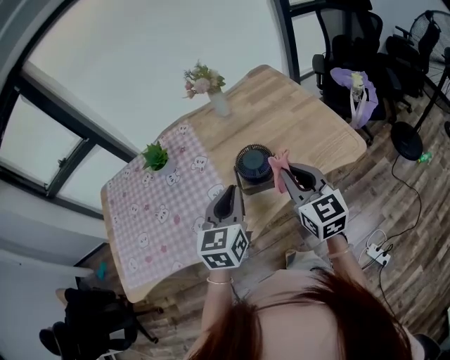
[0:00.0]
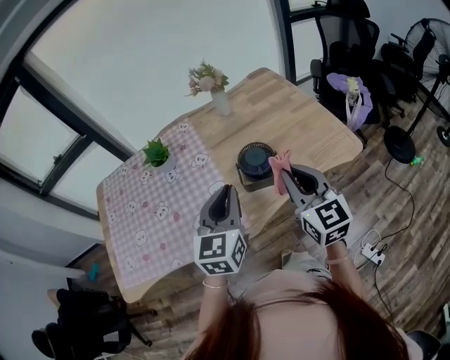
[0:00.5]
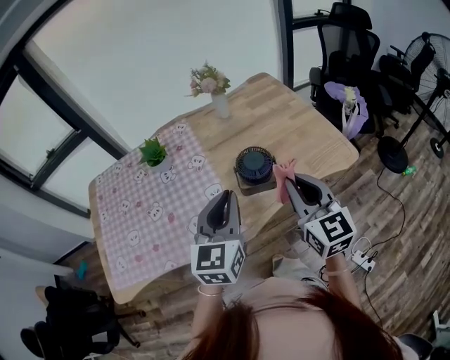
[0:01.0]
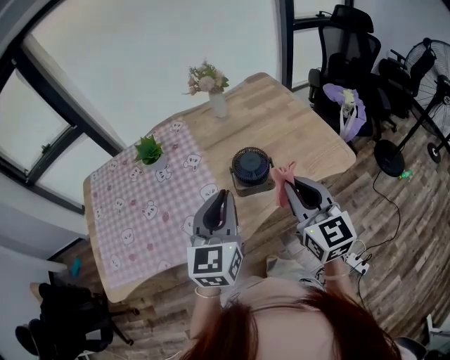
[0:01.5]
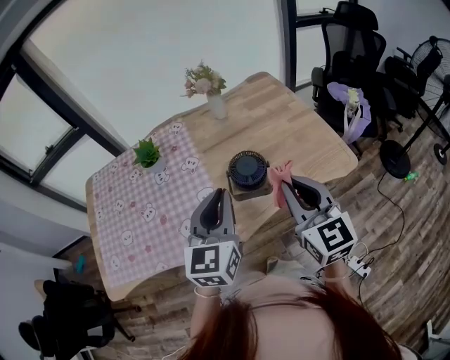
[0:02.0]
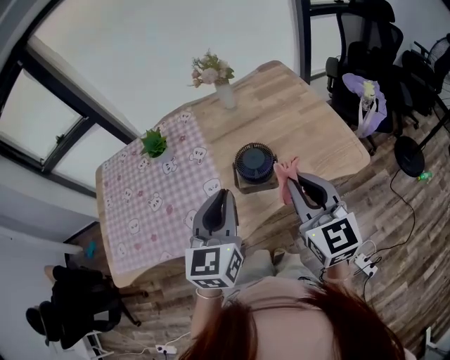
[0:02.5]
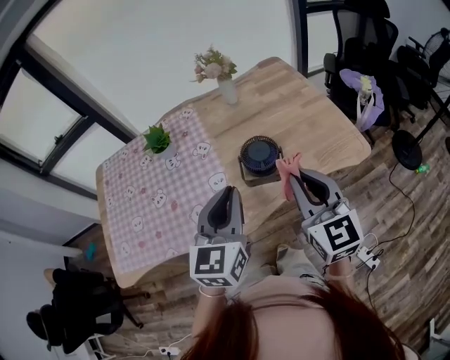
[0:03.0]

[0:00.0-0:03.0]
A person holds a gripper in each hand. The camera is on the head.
0:00.0 to 0:01.5: The right gripper changes place by roughly 5 cm. Meanwhile the left gripper is displaced upward by some 5 cm.
0:01.5 to 0:03.0: The grippers stay close to where they were, moving slightly.

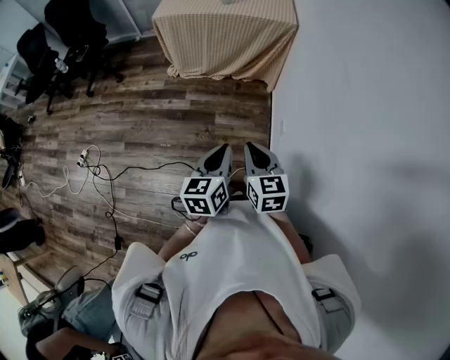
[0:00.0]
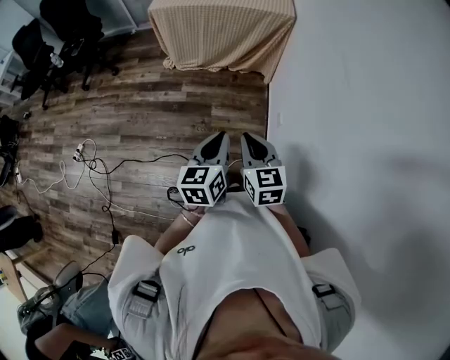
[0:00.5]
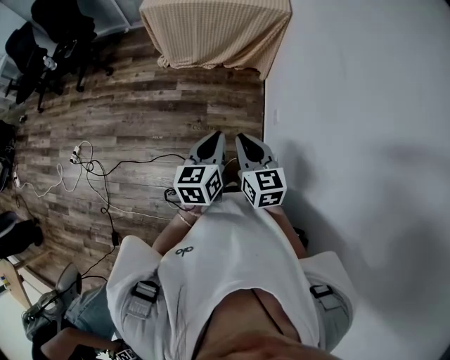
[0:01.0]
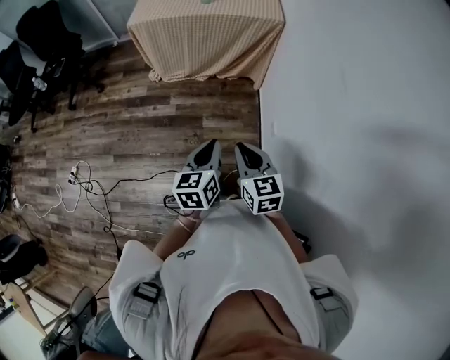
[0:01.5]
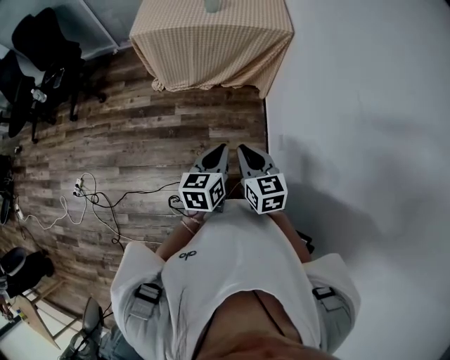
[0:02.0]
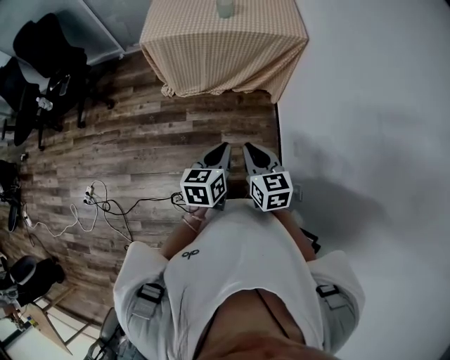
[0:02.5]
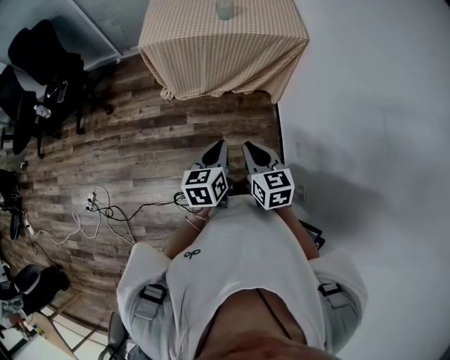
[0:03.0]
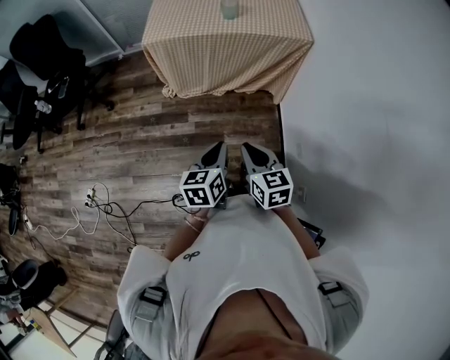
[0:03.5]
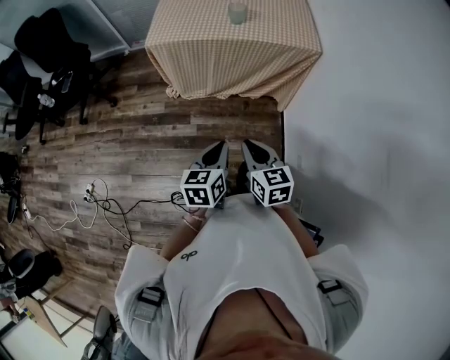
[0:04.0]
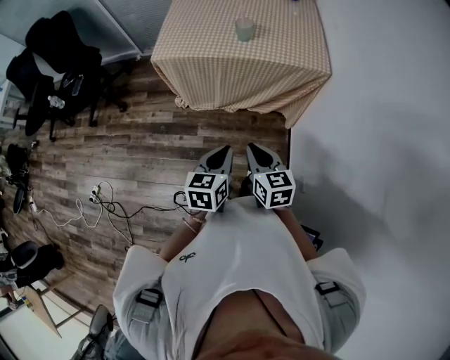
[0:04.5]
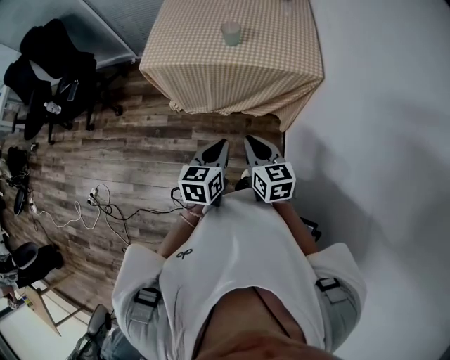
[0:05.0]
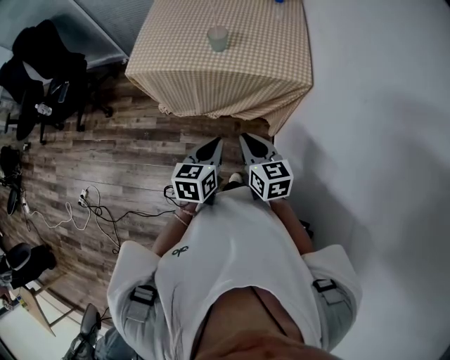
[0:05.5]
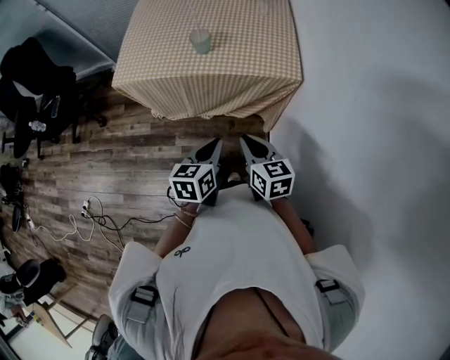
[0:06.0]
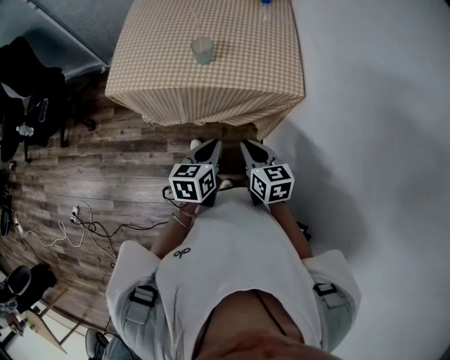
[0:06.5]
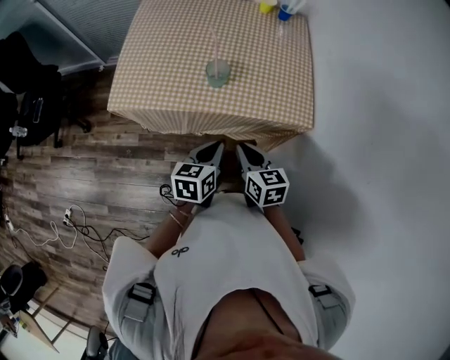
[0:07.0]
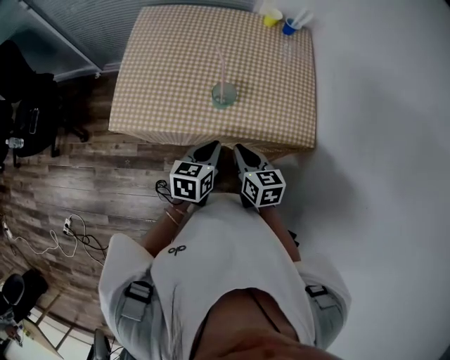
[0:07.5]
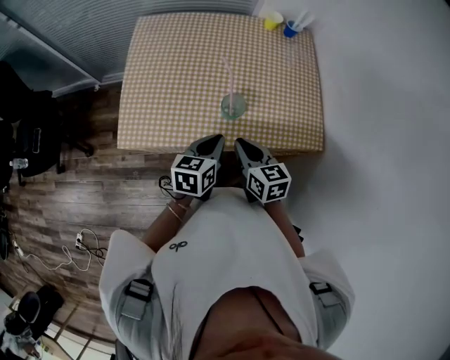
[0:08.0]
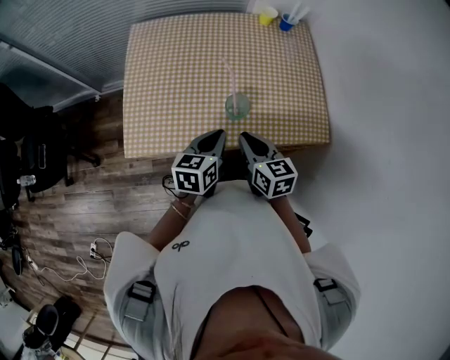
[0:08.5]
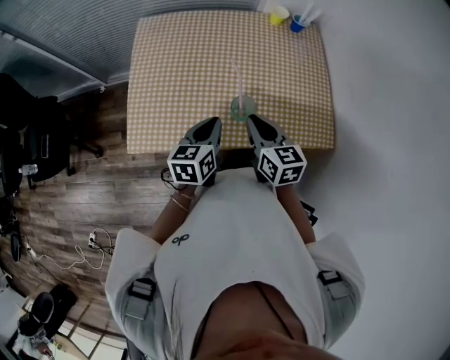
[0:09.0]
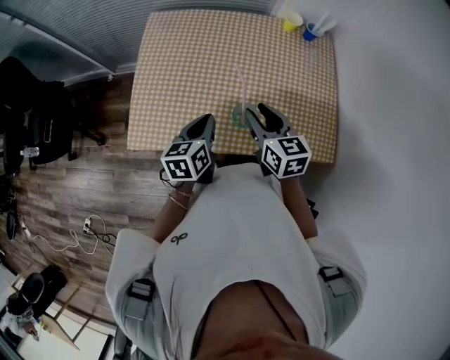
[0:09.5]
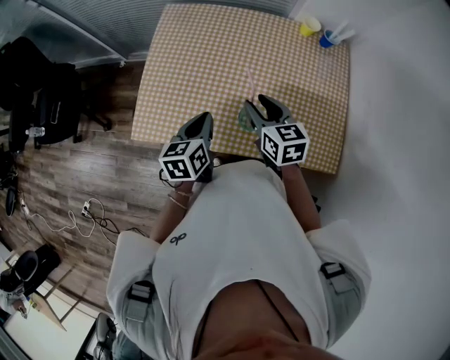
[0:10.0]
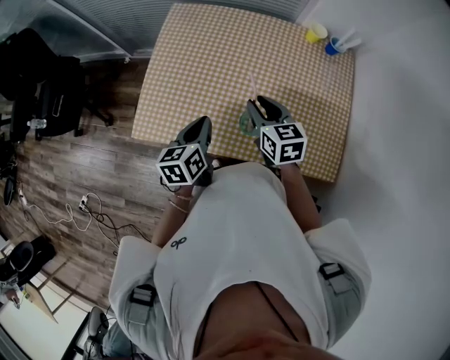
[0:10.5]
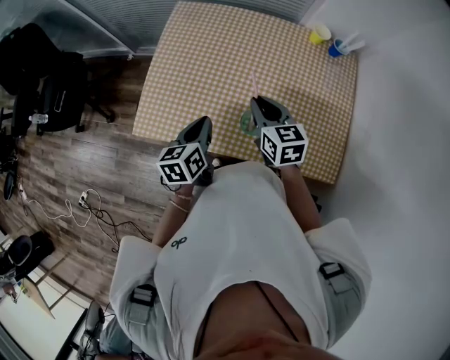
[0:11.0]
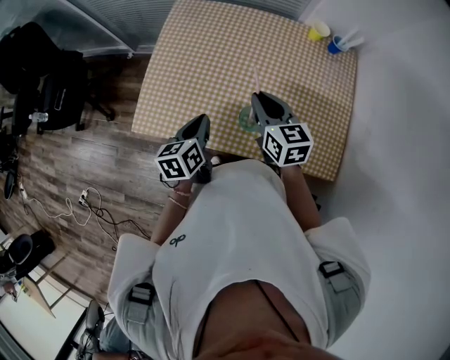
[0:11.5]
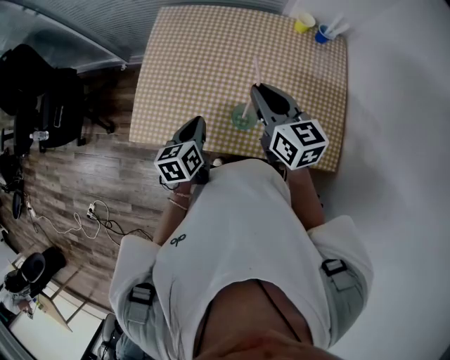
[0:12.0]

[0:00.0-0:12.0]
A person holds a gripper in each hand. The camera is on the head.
0:00.0 to 0:02.0: The grippers both shift forward by roughly 15 cm.
0:02.0 to 0:04.0: The grippers both shift forward and to the left by some 15 cm.
0:04.0 to 0:06.0: Both grippers move forward and to the right, roughly 25 cm.
0:06.0 to 0:08.0: The left gripper is displaced forward by some 30 cm, while the right gripper shifts roughly 30 cm forward and to the left.
0:08.0 to 0:10.0: The left gripper moves forward and to the left, approximately 10 cm, and changes its angle by about 20 degrees; the right gripper shifts roughly 15 cm forward, and opens up.
0:10.0 to 0:12.0: The right gripper heads upward, covering about 10 cm, and closes its fingers.

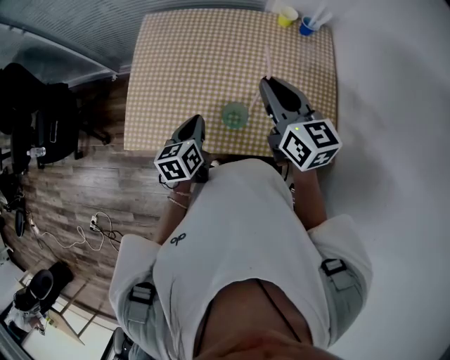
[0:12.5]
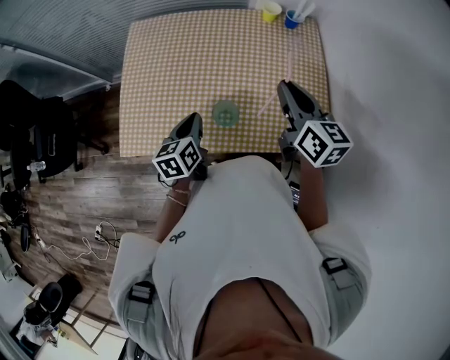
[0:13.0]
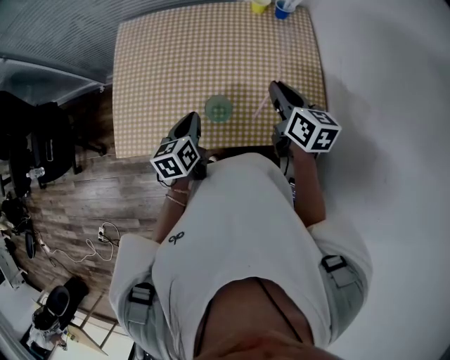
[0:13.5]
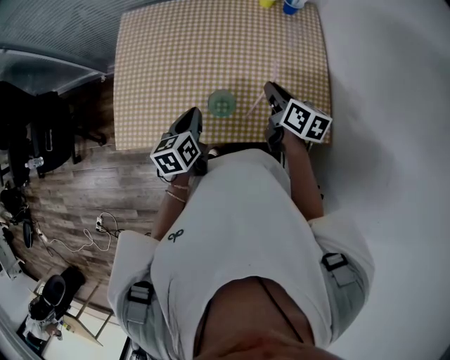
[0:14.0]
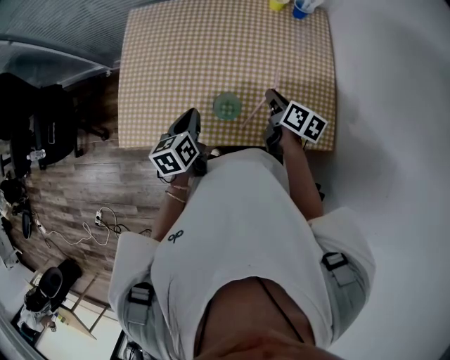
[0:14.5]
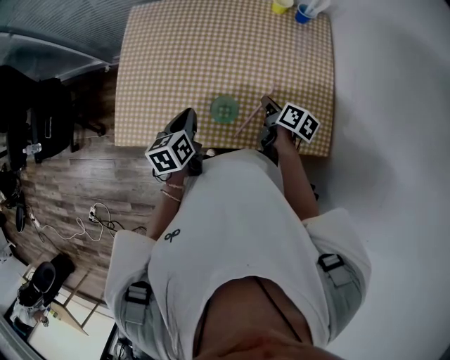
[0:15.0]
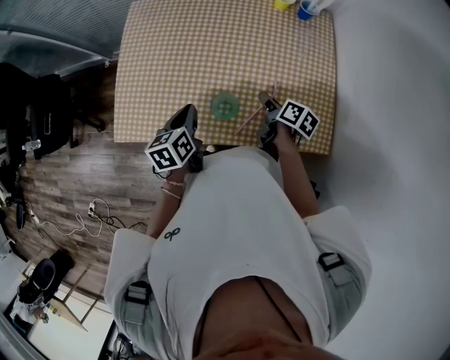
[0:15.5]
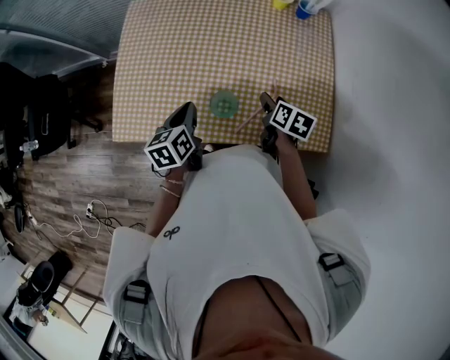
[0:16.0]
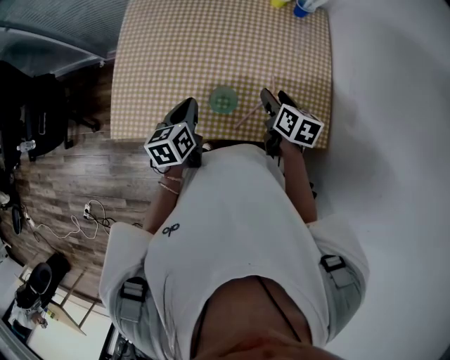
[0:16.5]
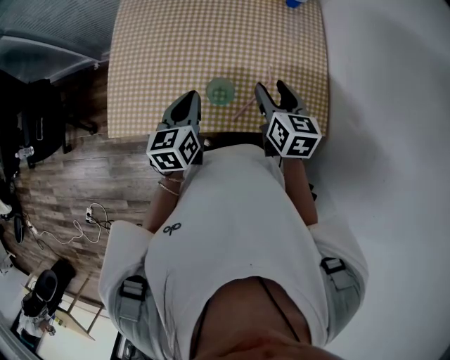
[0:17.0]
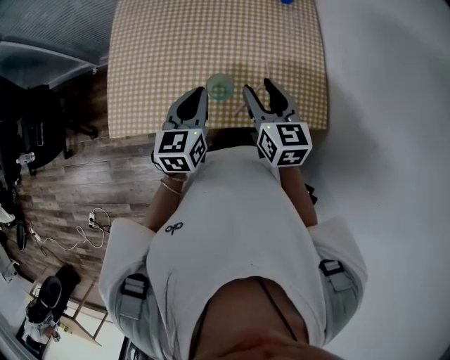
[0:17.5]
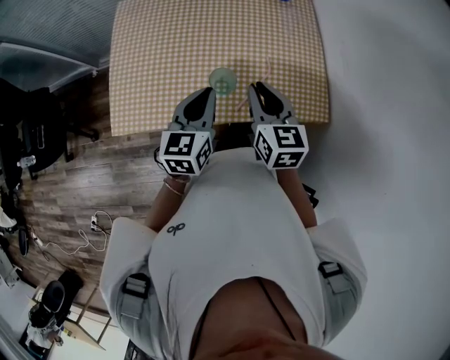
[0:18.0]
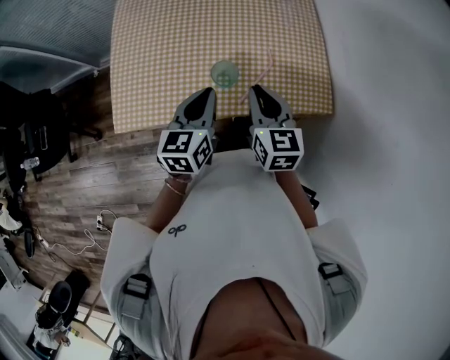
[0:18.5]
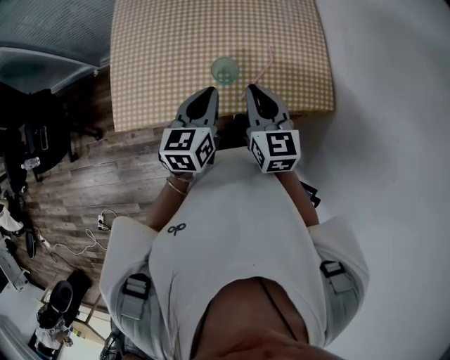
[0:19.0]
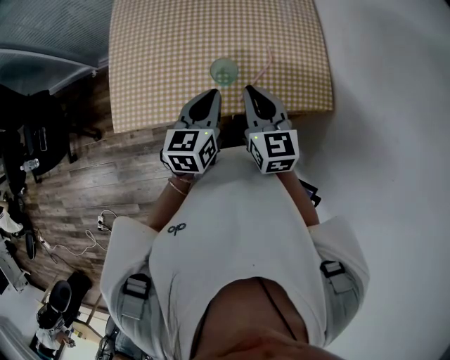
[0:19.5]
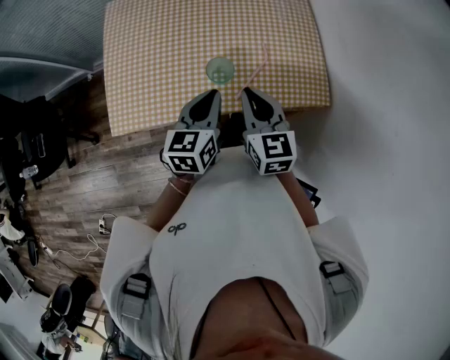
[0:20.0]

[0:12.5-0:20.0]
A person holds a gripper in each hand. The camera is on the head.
0:12.5 to 0:14.5: The right gripper heads downward and to the right, covering about 20 cm, and swivels roughly 40 degrees.
0:14.5 to 0:16.5: The right gripper opens up.
0:16.5 to 0:18.0: The left gripper shifts roughly 10 cm upward and to the right, and turns by about 30 degrees. Meanwhile the right gripper shifts about 15 cm upward, backward and to the left, rotates approximately 30 degrees, and closes its fingers.
0:18.0 to 0:20.0: The left gripper shifts by roughly 5 cm, while the right gripper goes some 5 cm backward.

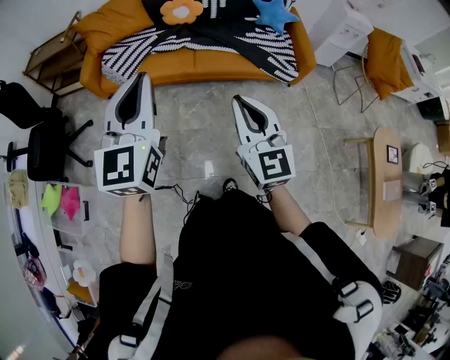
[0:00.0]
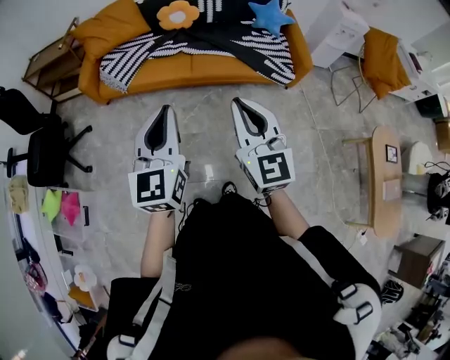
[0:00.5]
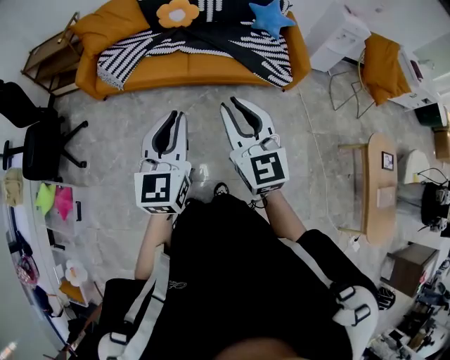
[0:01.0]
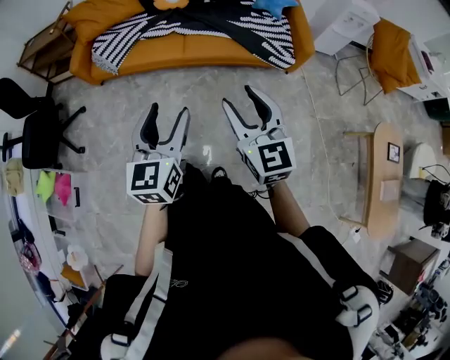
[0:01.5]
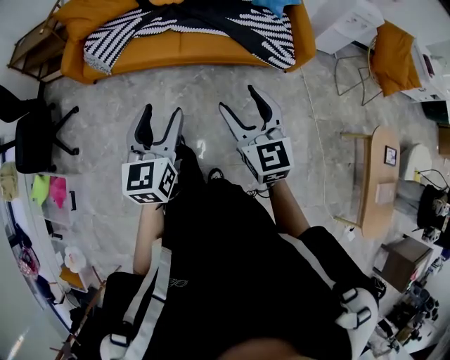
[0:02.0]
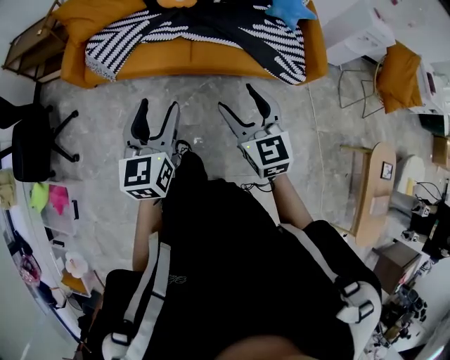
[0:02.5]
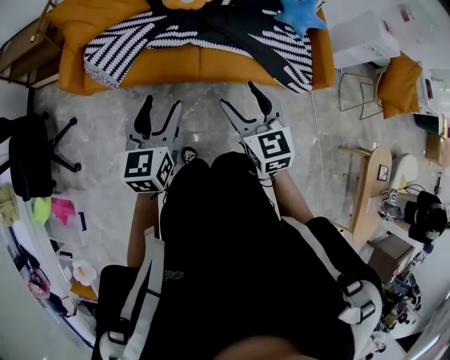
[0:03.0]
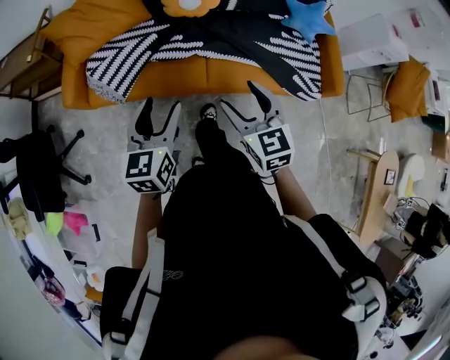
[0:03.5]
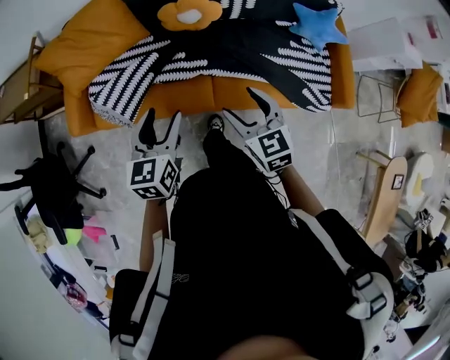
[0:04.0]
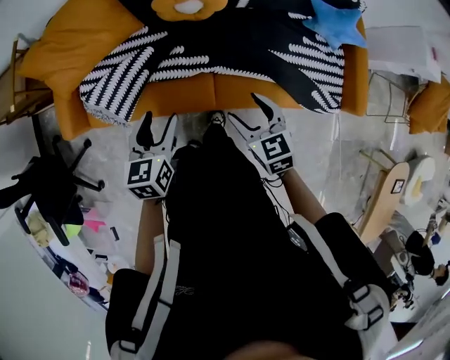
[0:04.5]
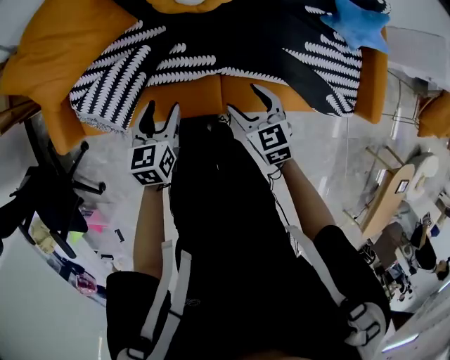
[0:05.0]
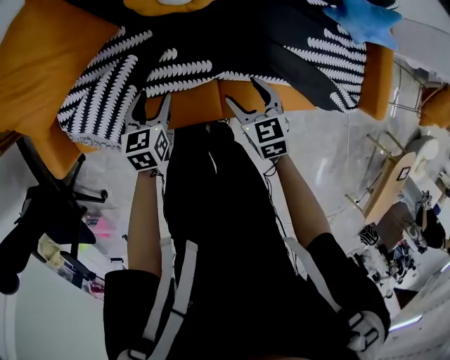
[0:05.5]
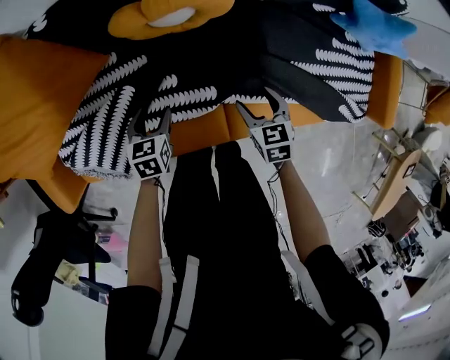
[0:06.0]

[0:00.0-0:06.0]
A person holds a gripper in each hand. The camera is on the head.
0:00.0 to 0:02.0: The right gripper goes roughly 15 cm to the right, downward and forward, and opens. The left gripper heads downward and to the right, covering some 20 cm, rotates some 20 degrees, and opens.
0:02.0 to 0:04.0: The pair of grippers is taken forward, approximately 50 cm.
0:04.0 to 0:06.0: Both grippers move downward and forward, about 50 cm. The left gripper points its fingers approximately 30 degrees further downward; the right gripper turns by some 30 degrees.
